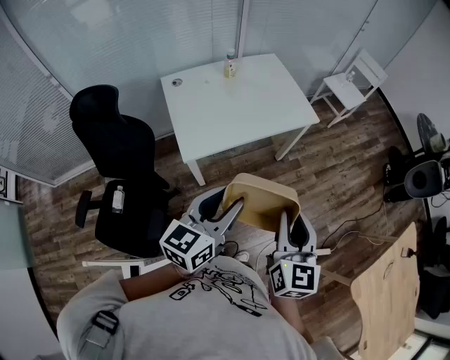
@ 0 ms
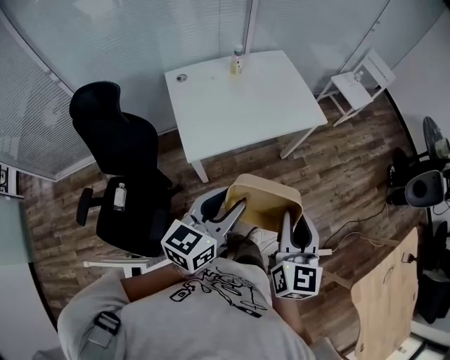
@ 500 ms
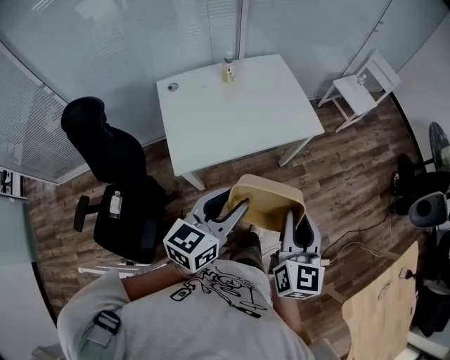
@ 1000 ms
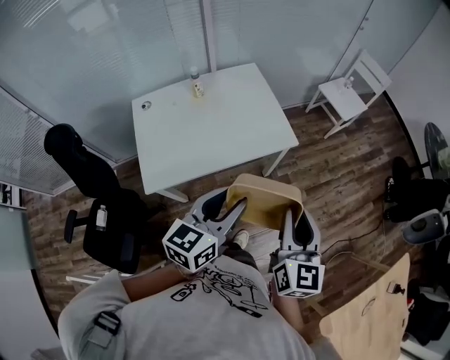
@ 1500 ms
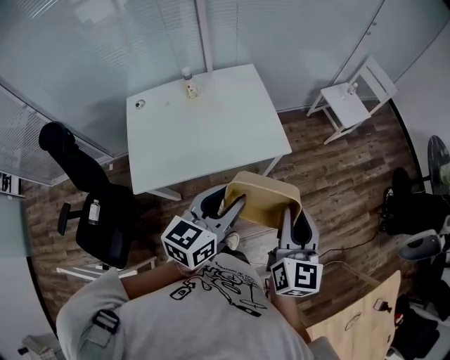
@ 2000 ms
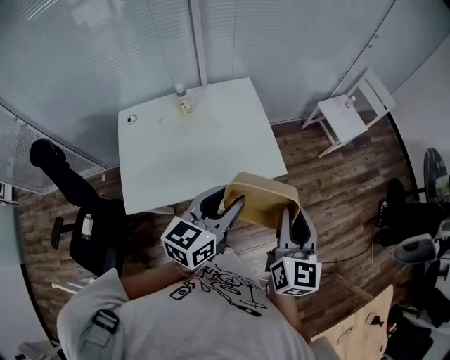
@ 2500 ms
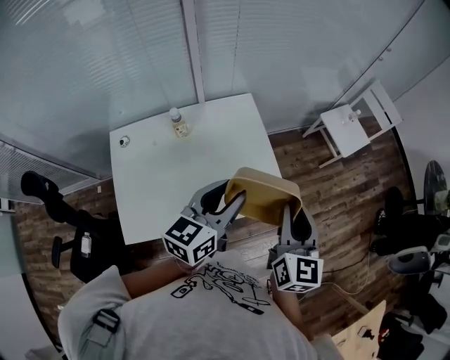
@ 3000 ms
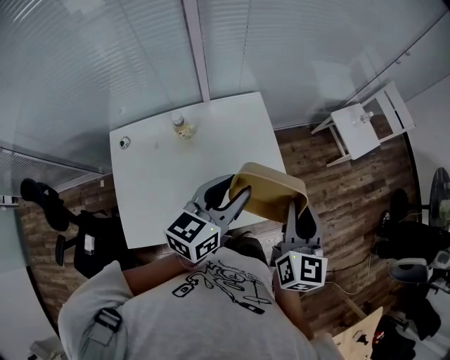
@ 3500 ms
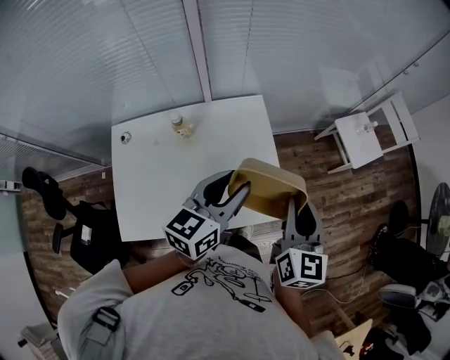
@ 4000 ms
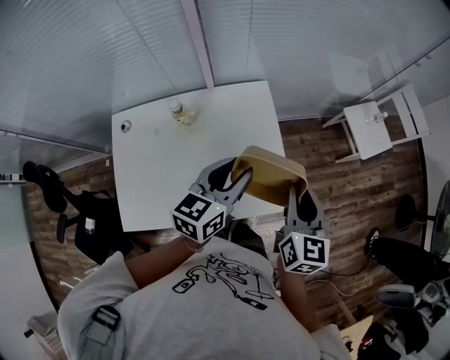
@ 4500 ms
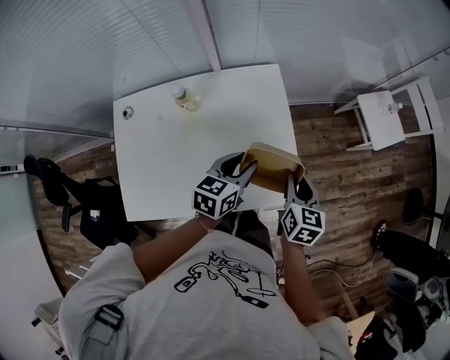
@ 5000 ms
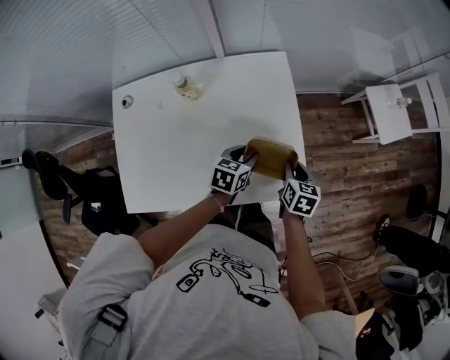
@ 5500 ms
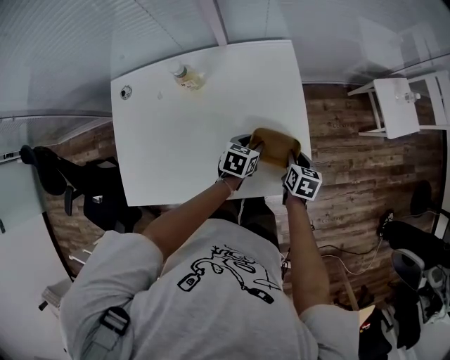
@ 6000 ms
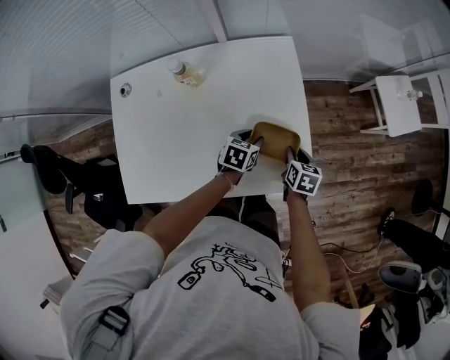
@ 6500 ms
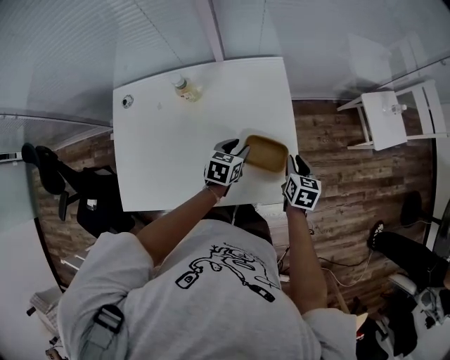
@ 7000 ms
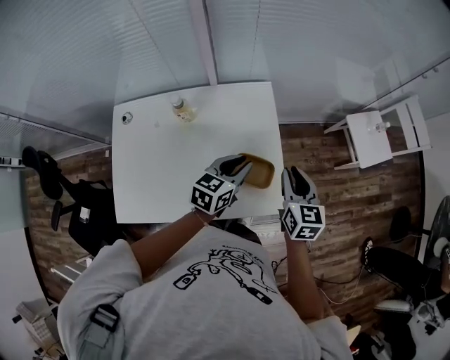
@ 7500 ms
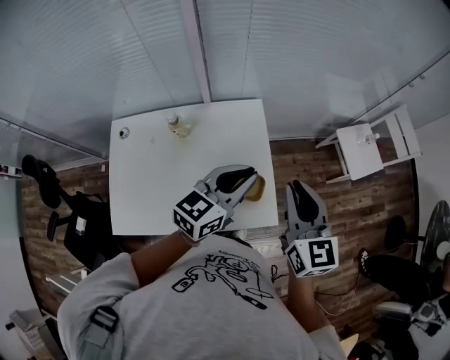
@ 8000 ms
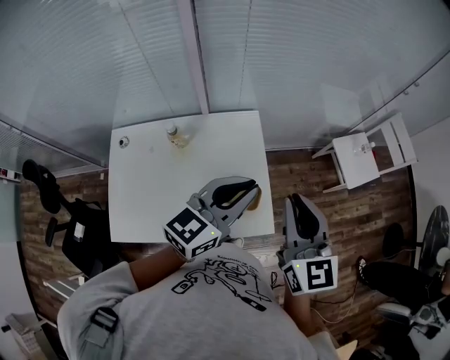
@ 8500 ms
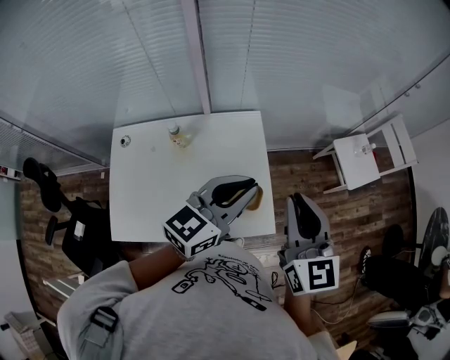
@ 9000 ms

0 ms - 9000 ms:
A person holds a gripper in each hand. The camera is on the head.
0 ms - 2000 ms: The grippers both shift forward and to the right by some 35 cm.
2000 ms - 4500 ms: Both grippers move forward, some 35 cm.
4500 ms - 7000 ms: Both grippers travel together downward, about 25 cm. The left gripper rotates roughly 30 degrees; the right gripper swivels approximately 30 degrees.
7000 ms - 9000 ms: Both grippers travel together upward, some 40 cm. The right gripper tilts its fingers approximately 40 degrees upward; the left gripper tilts its fingers some 40 degrees upward, and closes its fingers.

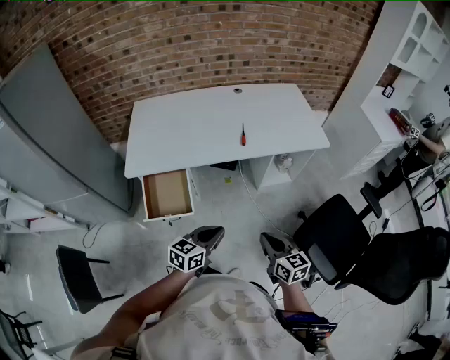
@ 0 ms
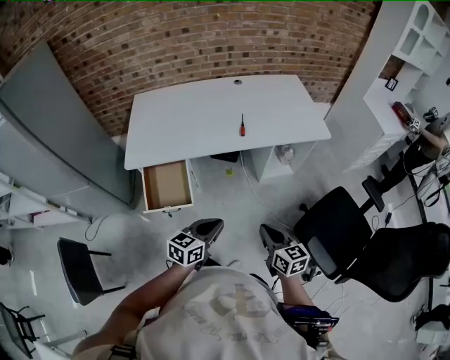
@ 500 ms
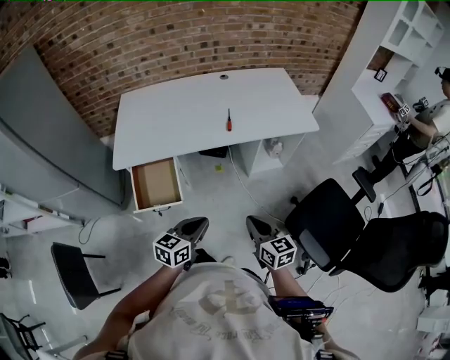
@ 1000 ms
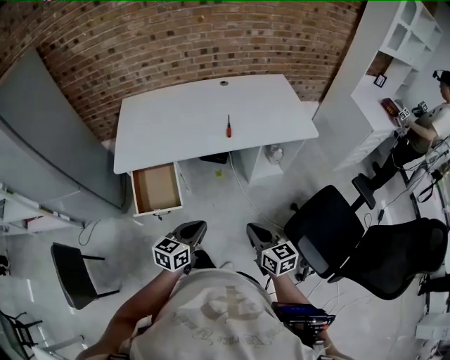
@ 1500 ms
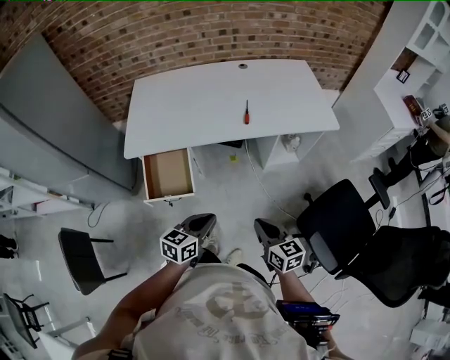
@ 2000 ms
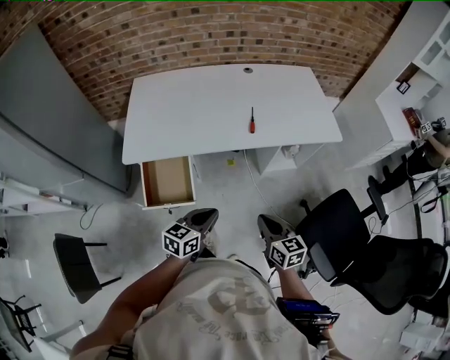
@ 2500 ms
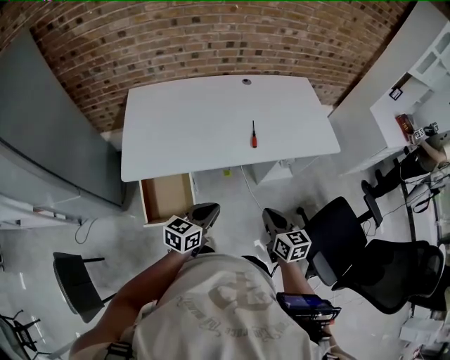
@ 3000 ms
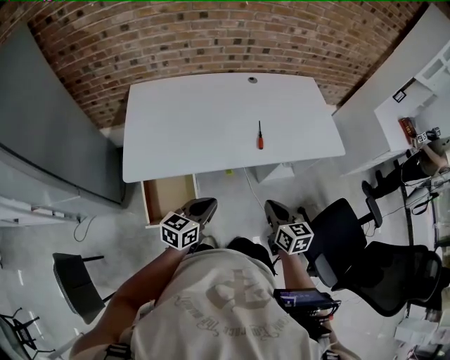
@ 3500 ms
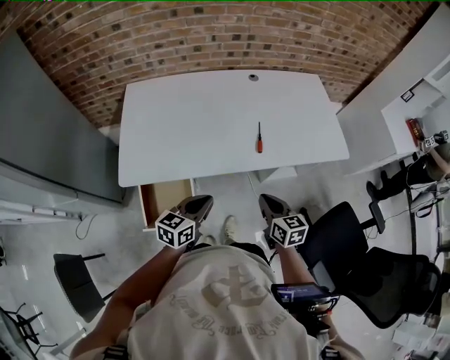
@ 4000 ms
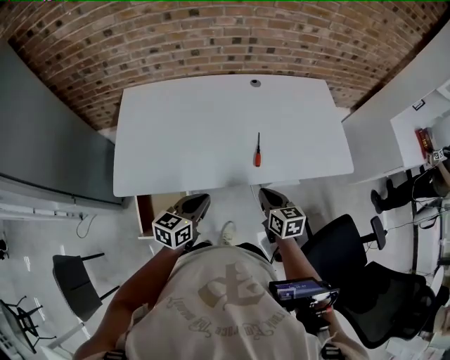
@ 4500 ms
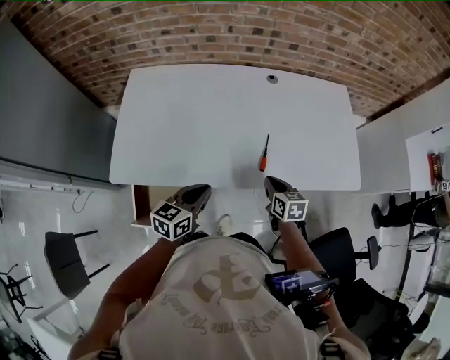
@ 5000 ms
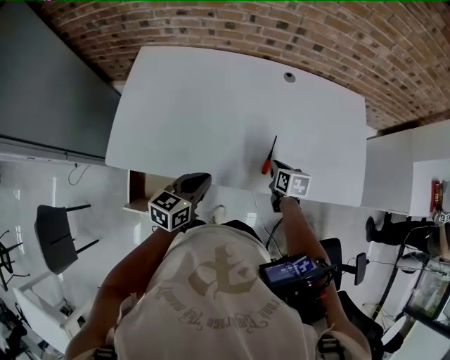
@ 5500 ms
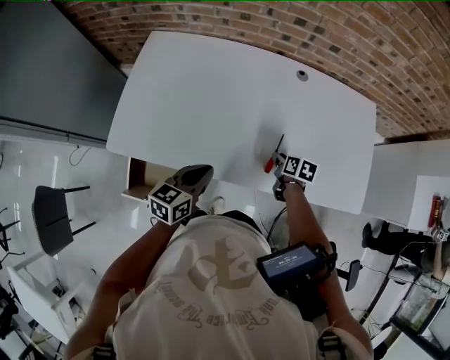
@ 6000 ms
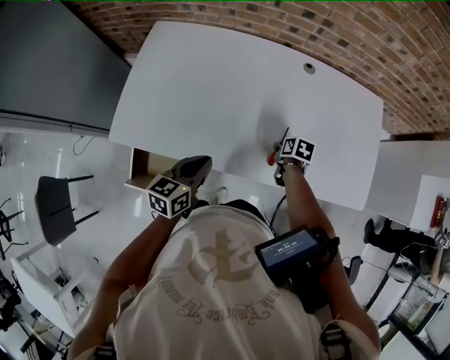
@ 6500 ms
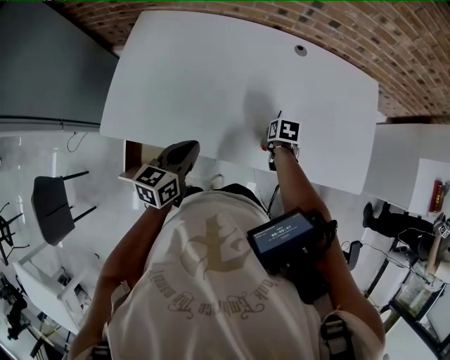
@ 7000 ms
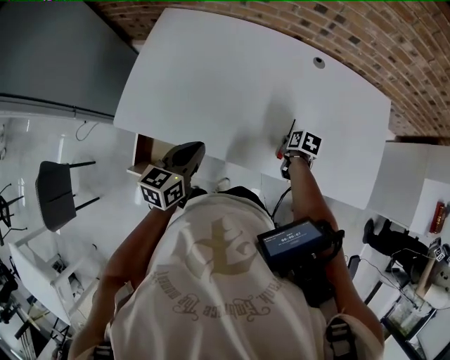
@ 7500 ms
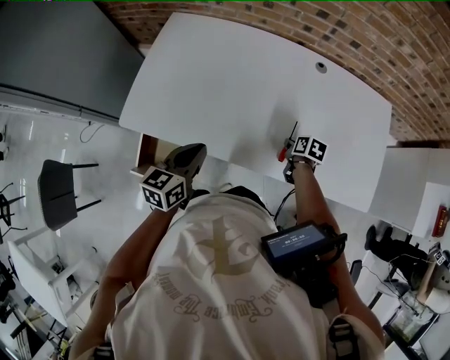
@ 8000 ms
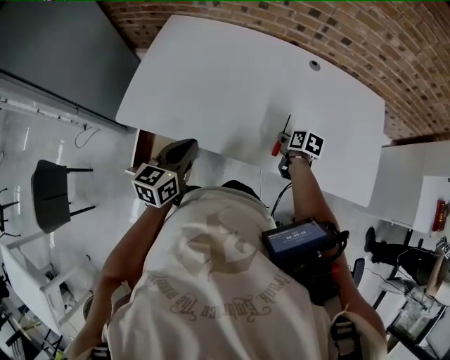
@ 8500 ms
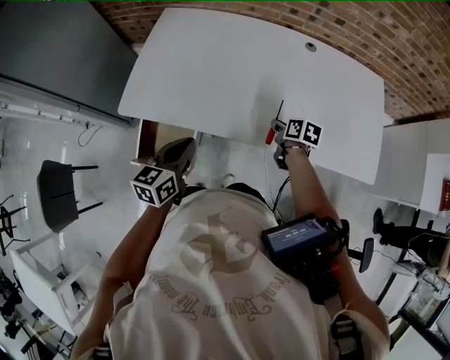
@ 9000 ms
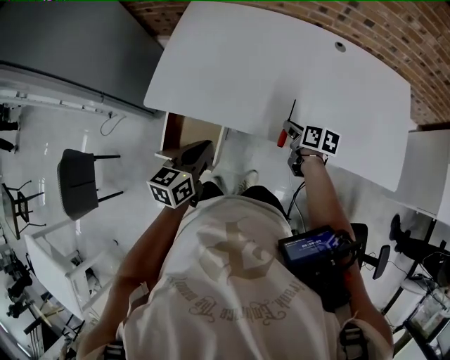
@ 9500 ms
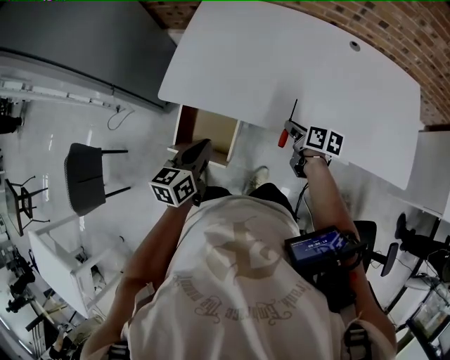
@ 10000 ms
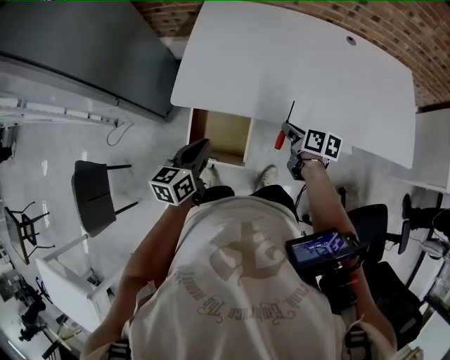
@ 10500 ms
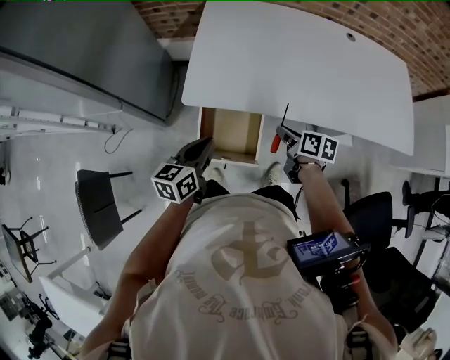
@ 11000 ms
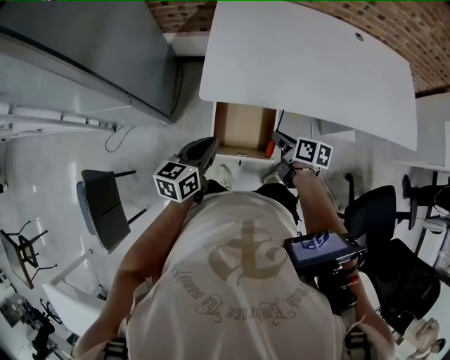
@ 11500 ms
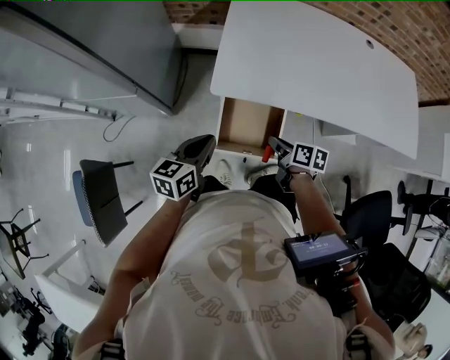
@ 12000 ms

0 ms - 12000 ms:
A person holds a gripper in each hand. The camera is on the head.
0 ms - 2000 ms: The grippers make only small movements.
2000 ms - 4000 ms: The left gripper is displaced forward and to the left by approximately 25 cm, while the right gripper moves forward, some 25 cm.
4000 ms - 6000 ms: The left gripper shifts some 15 cm forward, and rotates roughly 20 degrees; the right gripper moves forward and downward, about 35 cm, changes its angle by about 30 degrees, and opens its fingers.
6000 ms - 8000 ms: The left gripper goes about 5 cm to the left.
8000 ms - 10000 ms: The right gripper moves to the left, approximately 20 cm, and rotates about 20 degrees. Meanwhile the left gripper goes some 15 cm to the left and backward.
10000 ms - 12000 ms: The grippers both shift to the left by approximately 30 cm.

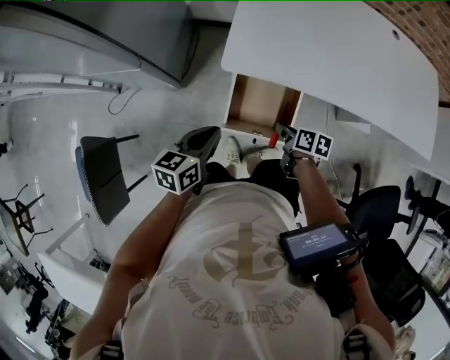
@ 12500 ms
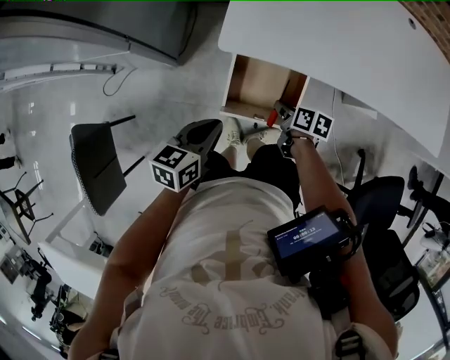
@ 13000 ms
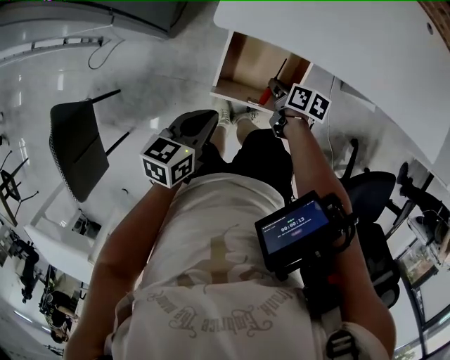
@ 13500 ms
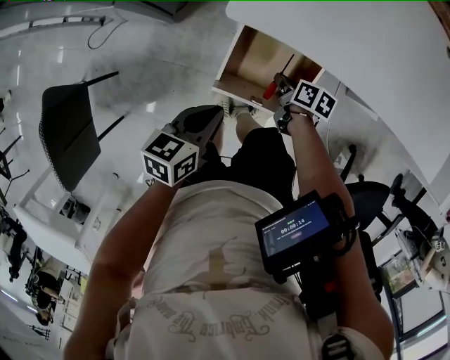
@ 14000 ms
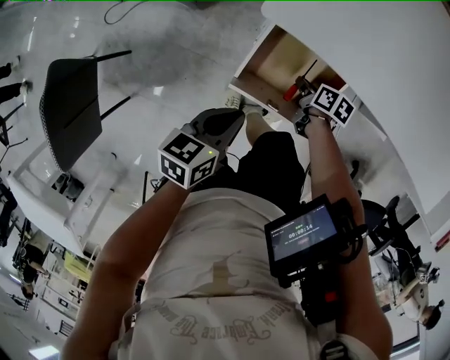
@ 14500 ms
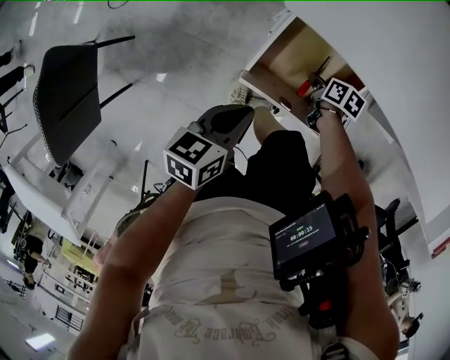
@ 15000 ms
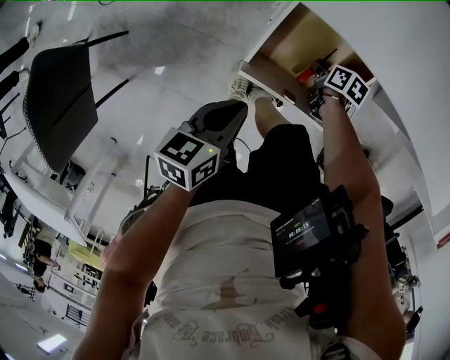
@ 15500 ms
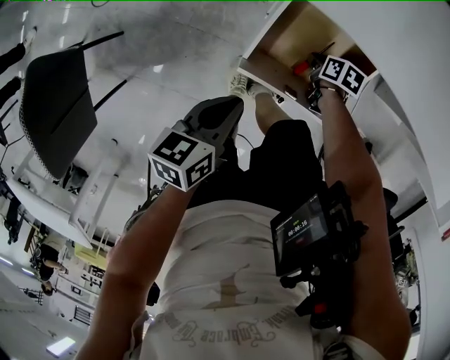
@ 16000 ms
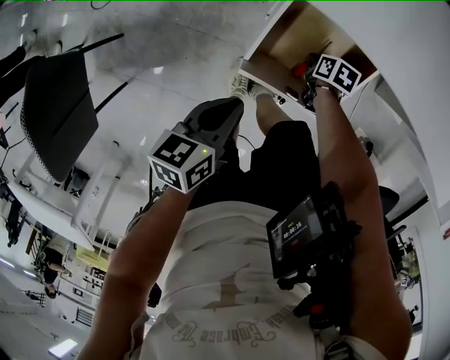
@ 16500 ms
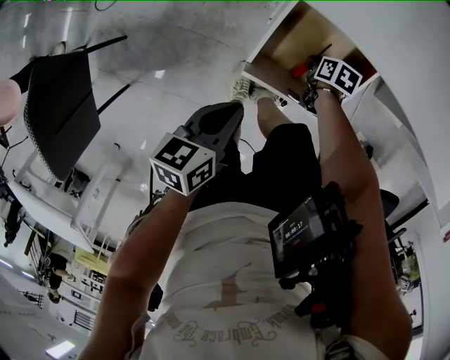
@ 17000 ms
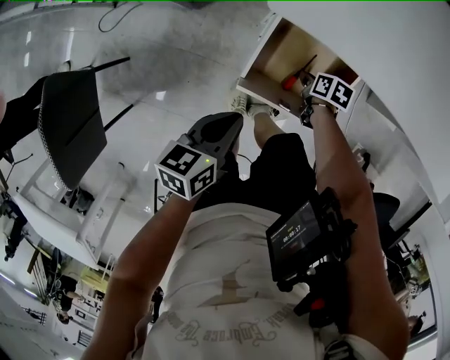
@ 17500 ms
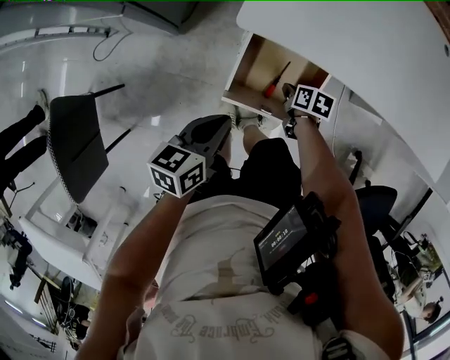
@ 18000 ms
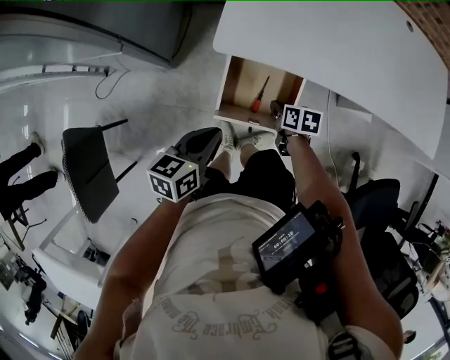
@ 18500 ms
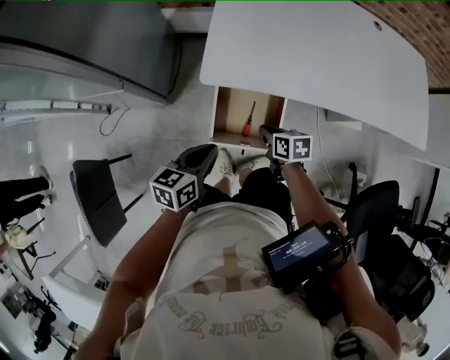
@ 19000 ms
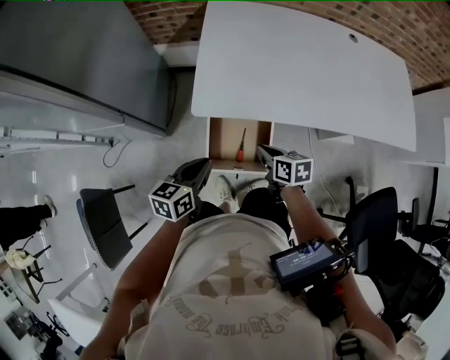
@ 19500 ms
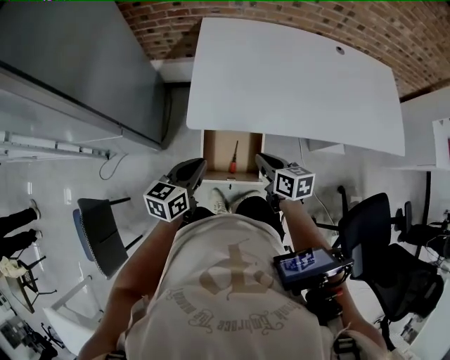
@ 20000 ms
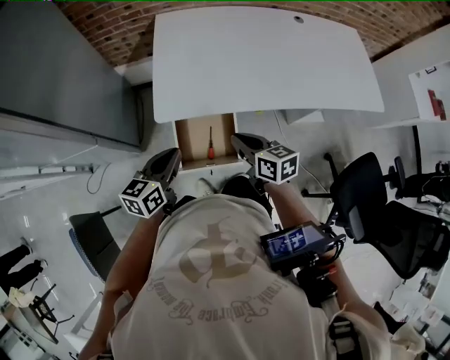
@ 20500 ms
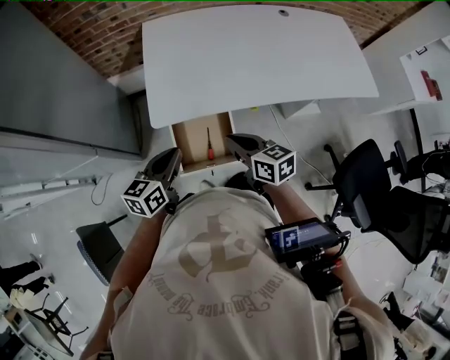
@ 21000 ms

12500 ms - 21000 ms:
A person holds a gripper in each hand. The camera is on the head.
12500 ms - 14500 ms: The left gripper goes roughly 15 cm downward; the right gripper moves downward and forward, about 20 cm.
14500 ms - 16500 ms: The left gripper shifts roughly 5 cm downward, while the right gripper goes approximately 10 cm downward.
16500 ms - 19000 ms: The right gripper shifts approximately 30 cm upward, and turns by approximately 30 degrees; the left gripper is displaced upward by about 15 cm, and swivels some 20 degrees.
19000 ms - 21000 ms: The right gripper is displaced upward by roughly 20 cm, and changes its angle by approximately 30 degrees, while the left gripper travels upward by roughly 10 cm.
